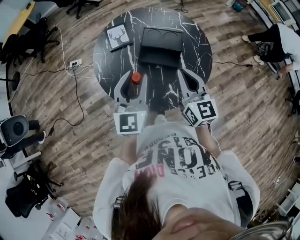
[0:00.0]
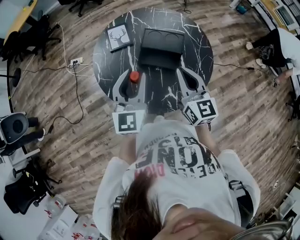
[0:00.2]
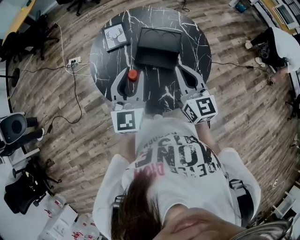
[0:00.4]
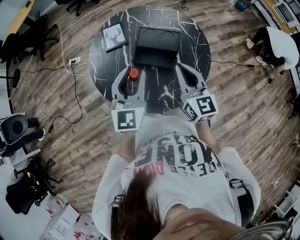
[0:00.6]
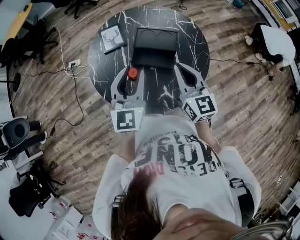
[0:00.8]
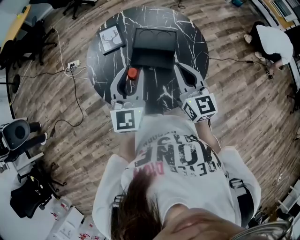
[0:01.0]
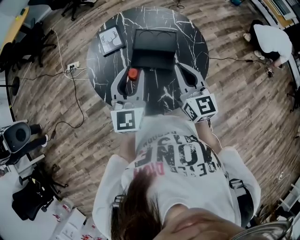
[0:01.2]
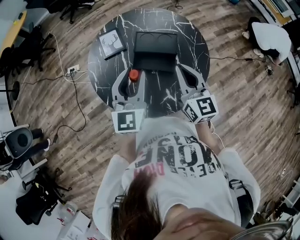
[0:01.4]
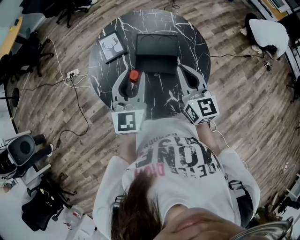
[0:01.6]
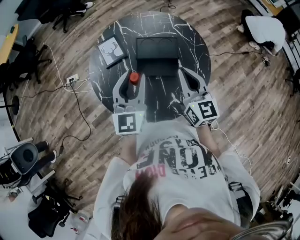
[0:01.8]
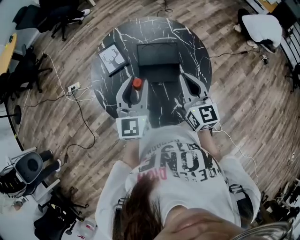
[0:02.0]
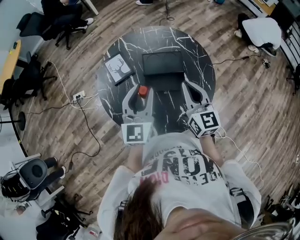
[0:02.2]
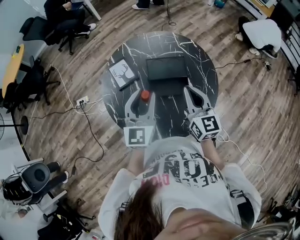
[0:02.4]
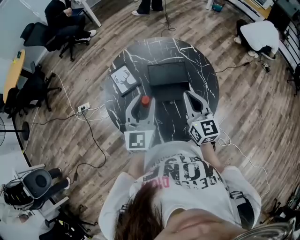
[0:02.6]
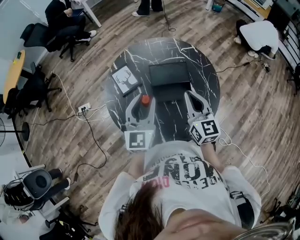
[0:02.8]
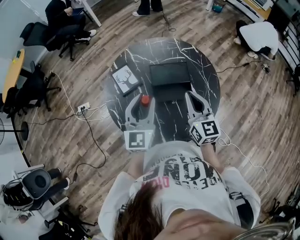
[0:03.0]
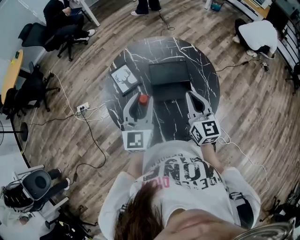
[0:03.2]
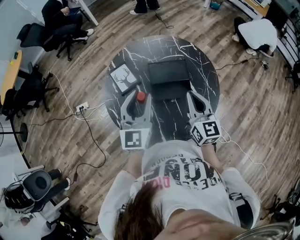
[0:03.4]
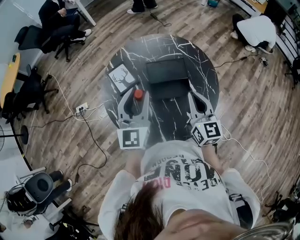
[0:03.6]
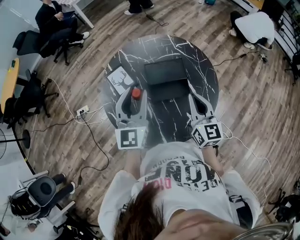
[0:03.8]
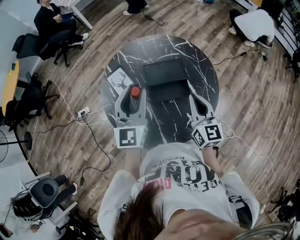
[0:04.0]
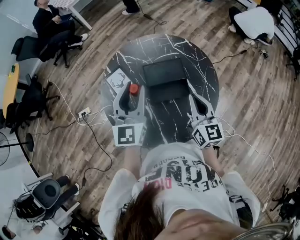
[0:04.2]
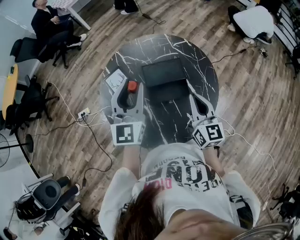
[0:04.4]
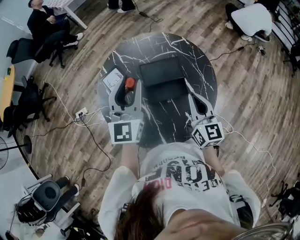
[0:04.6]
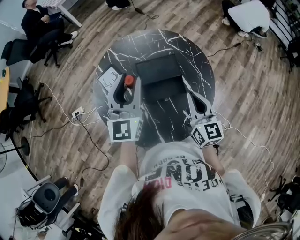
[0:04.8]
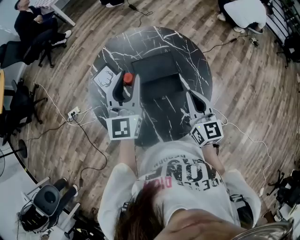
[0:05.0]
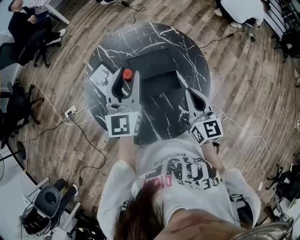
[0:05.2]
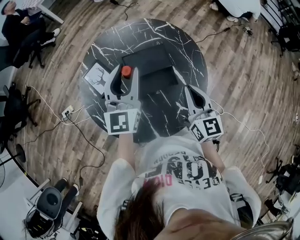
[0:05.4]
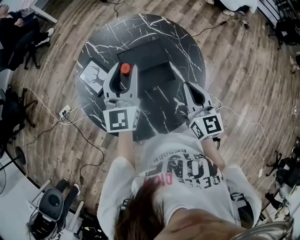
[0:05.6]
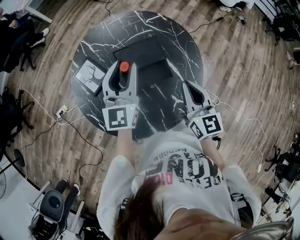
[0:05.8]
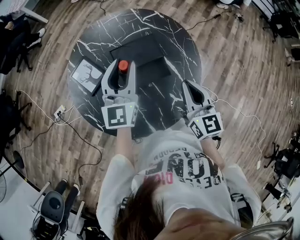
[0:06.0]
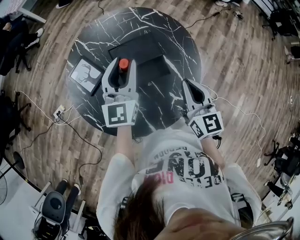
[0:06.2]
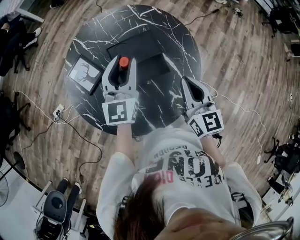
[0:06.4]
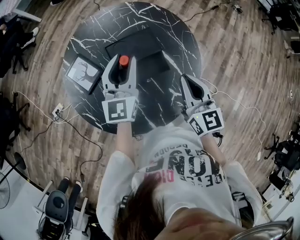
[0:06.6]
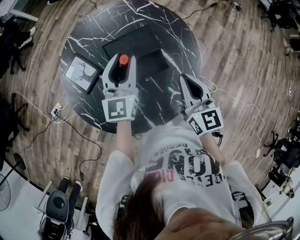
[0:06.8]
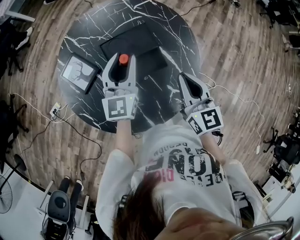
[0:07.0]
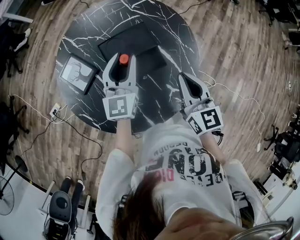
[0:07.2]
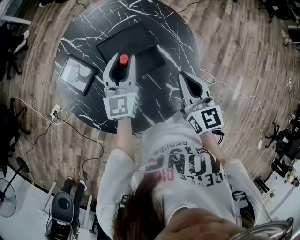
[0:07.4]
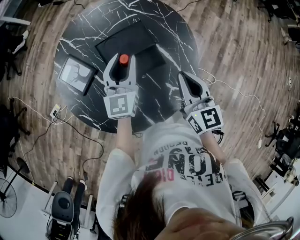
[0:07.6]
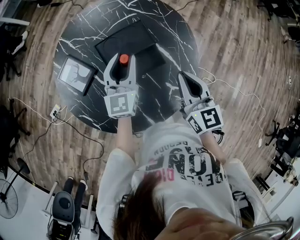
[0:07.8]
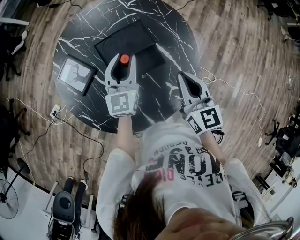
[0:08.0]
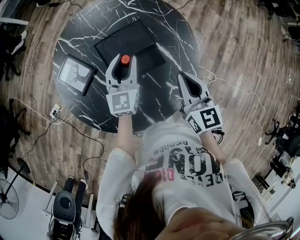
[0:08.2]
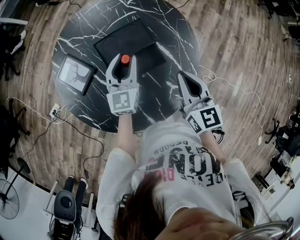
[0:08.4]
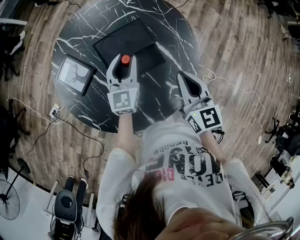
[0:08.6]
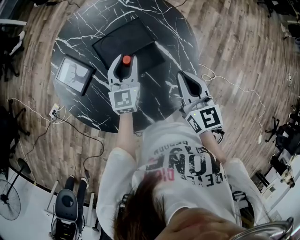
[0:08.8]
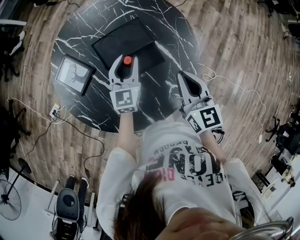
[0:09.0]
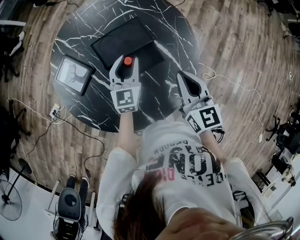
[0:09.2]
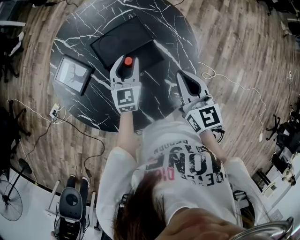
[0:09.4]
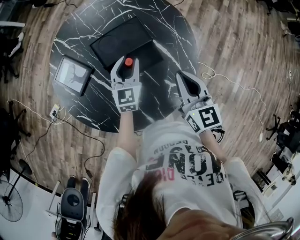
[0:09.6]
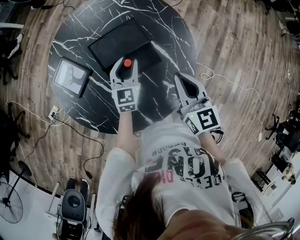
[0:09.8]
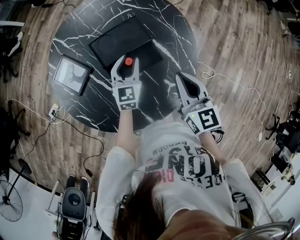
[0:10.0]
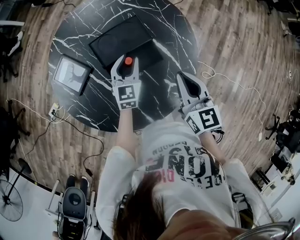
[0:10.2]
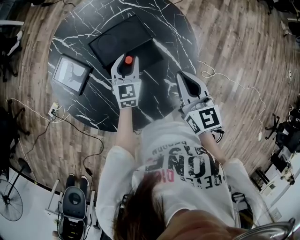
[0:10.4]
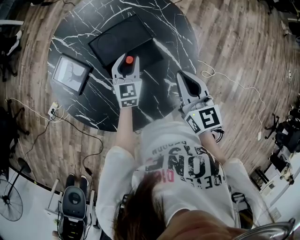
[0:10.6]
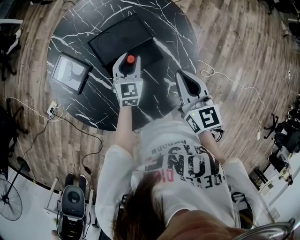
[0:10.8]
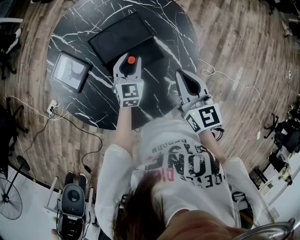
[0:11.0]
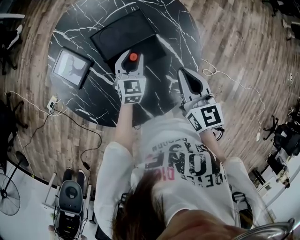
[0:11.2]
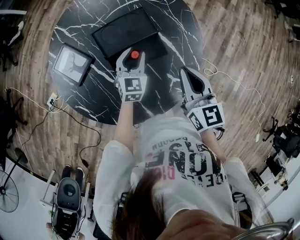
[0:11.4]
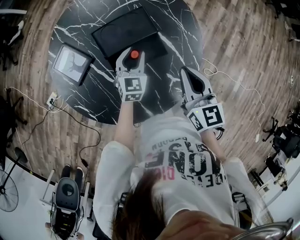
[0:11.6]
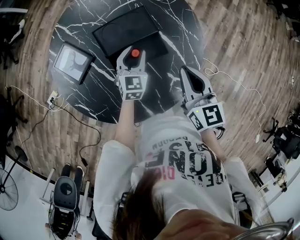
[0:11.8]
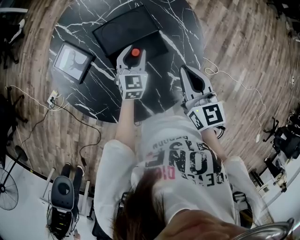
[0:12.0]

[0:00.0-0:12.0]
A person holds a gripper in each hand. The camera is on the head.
0:00.0 to 0:01.6: Both grippers travel together forward, roughly 5 cm.
0:01.6 to 0:03.0: The left gripper heads to the left, covering about 5 cm. Meanwhile the right gripper ends up roughly 5 cm from where it was.
0:03.0 to 0:04.4: The left gripper goes approximately 10 cm forward and upward.
0:04.4 to 0:06.0: The left gripper shifts approximately 10 cm downward, forward and to the right.
0:06.0 to 0:07.6: The left gripper moves downward, some 10 cm.
0:07.6 to 0:09.0: The left gripper travels downward by approximately 5 cm.
0:09.0 to 0:10.4: The left gripper shifts roughly 5 cm downward.
0:10.4 to 0:12.0: The grippers move only a little.

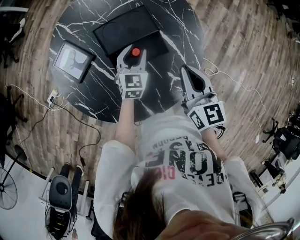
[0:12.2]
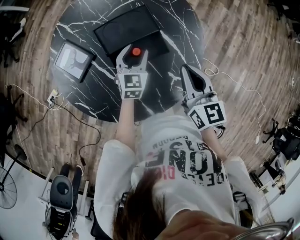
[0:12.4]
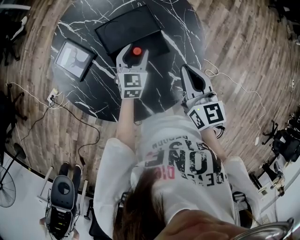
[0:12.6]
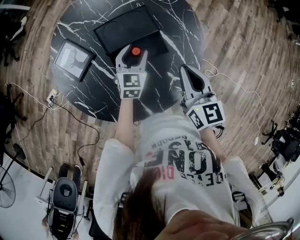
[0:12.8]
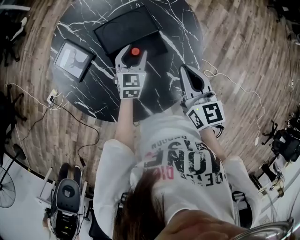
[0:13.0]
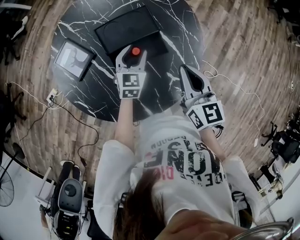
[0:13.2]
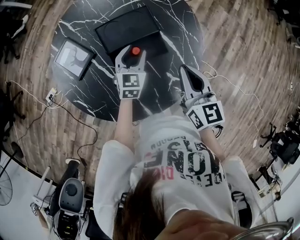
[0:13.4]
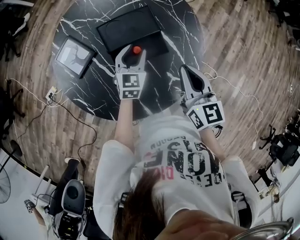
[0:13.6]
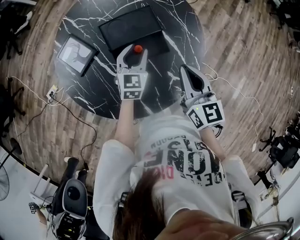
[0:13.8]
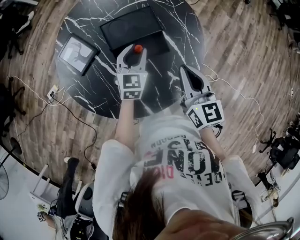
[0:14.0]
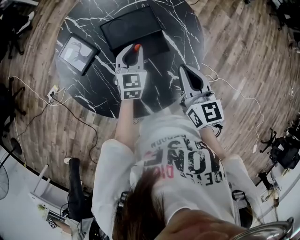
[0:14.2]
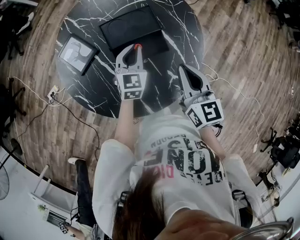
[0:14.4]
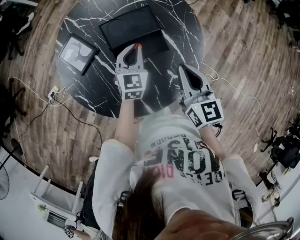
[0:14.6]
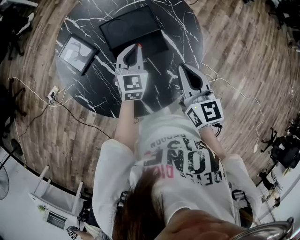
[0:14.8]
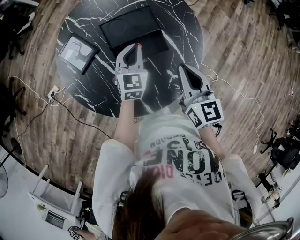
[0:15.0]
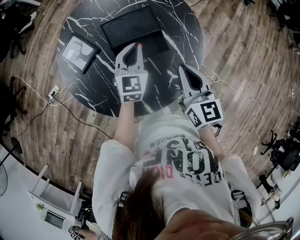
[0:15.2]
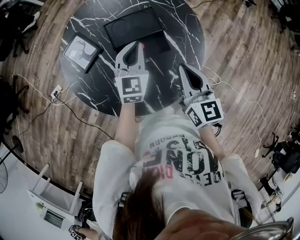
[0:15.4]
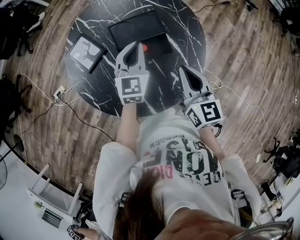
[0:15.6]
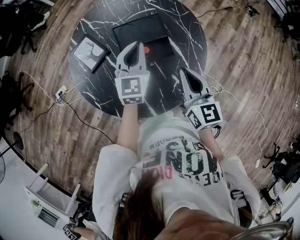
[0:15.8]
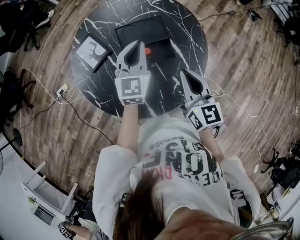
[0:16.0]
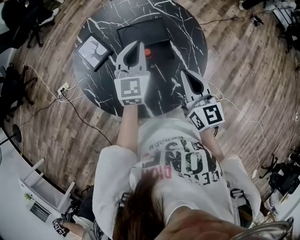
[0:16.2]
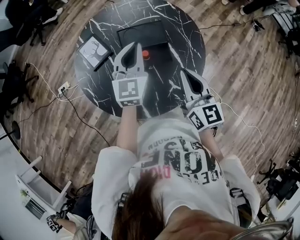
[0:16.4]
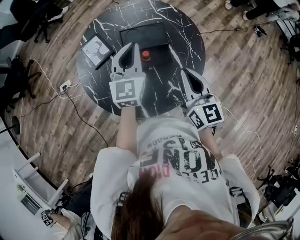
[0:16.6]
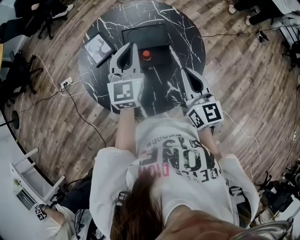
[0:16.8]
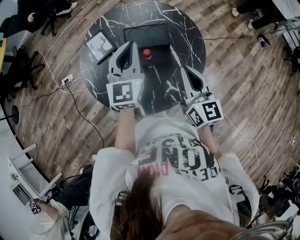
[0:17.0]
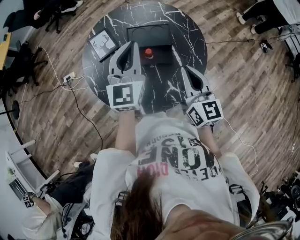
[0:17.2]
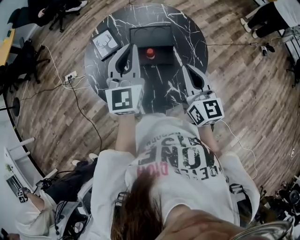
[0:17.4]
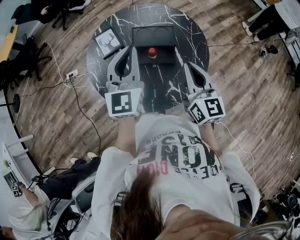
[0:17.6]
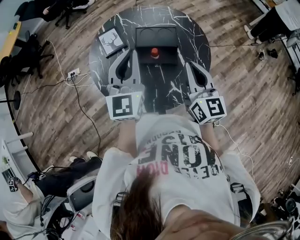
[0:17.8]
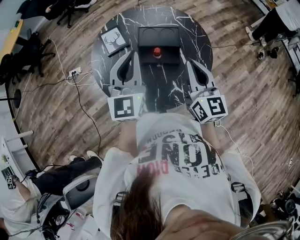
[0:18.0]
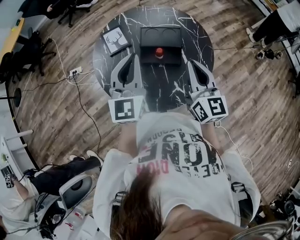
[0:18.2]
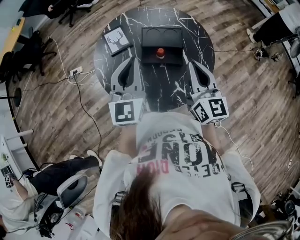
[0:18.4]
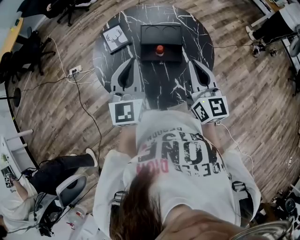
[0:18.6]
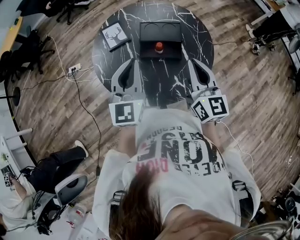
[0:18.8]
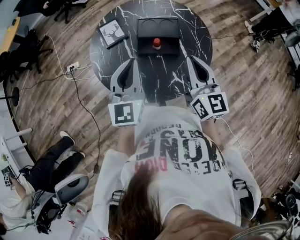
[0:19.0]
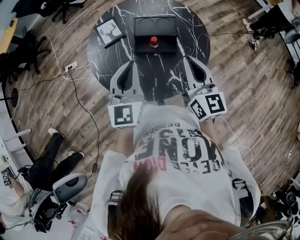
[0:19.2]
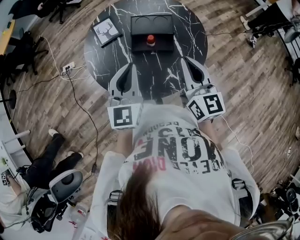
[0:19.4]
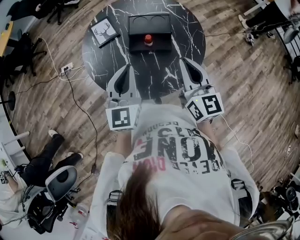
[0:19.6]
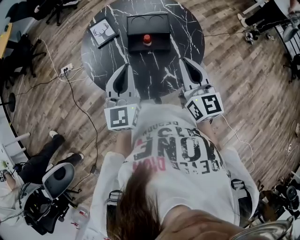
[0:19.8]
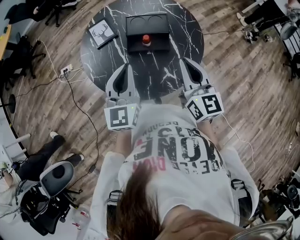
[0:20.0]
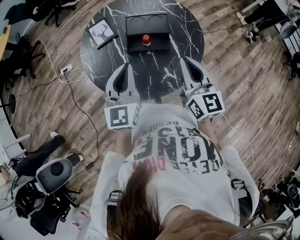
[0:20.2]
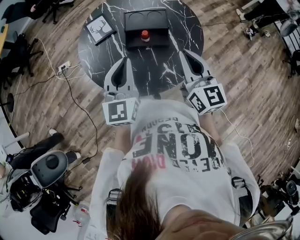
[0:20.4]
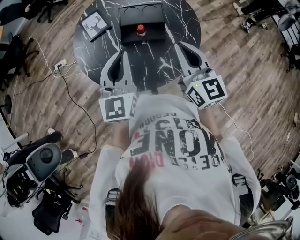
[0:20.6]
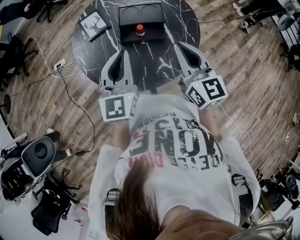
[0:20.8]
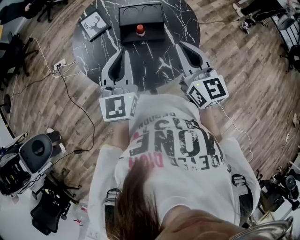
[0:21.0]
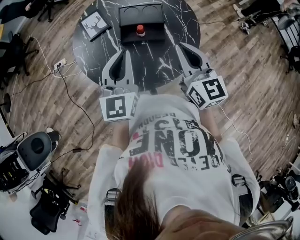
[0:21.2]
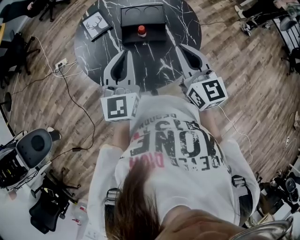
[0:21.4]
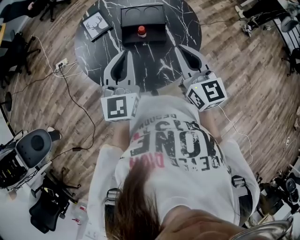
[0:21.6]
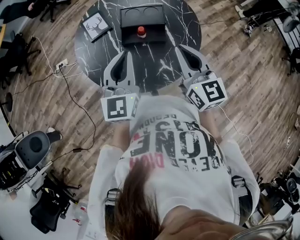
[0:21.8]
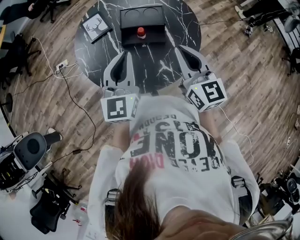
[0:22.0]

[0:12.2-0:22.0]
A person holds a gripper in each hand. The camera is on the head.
0:12.2 to 0:13.6: There are only small adjustments of the grippers.
0:13.6 to 0:15.0: The left gripper closes its fingers.
0:15.0 to 0:16.4: The left gripper is displaced upward by approximately 15 cm.
0:16.4 to 0:17.8: The left gripper heads backward and upward, covering some 15 cm.
0:17.8 to 0:19.2: The left gripper goes roughly 10 cm backward and downward.
0:19.2 to 0:22.0: The grippers stay close to where they were, moving slightly.

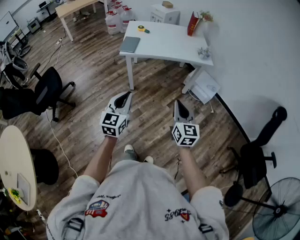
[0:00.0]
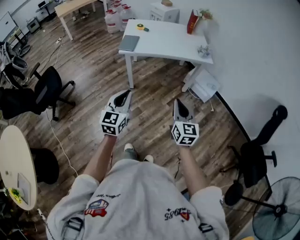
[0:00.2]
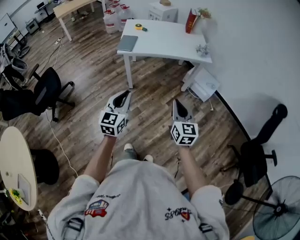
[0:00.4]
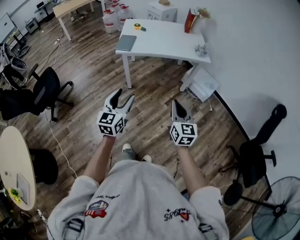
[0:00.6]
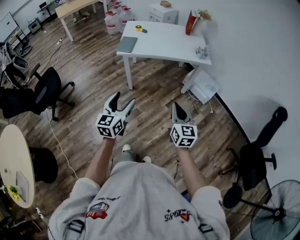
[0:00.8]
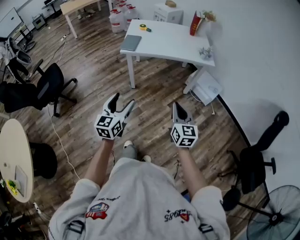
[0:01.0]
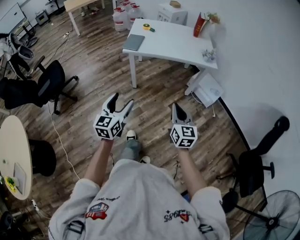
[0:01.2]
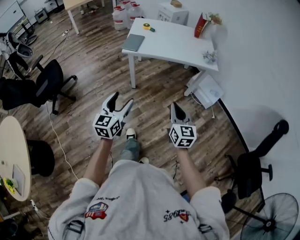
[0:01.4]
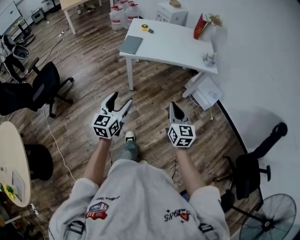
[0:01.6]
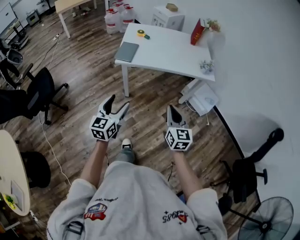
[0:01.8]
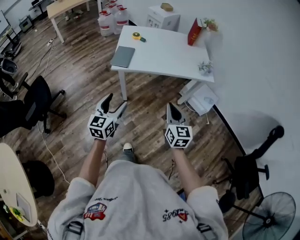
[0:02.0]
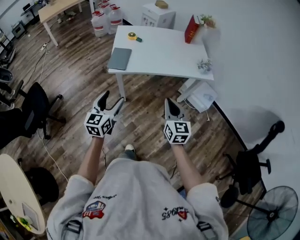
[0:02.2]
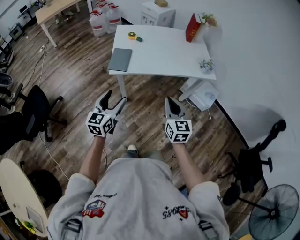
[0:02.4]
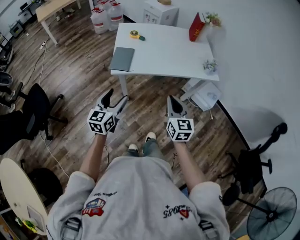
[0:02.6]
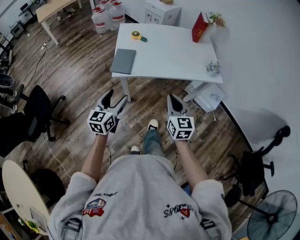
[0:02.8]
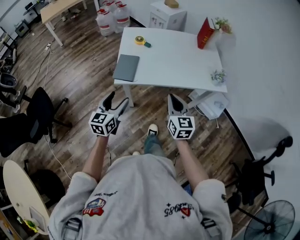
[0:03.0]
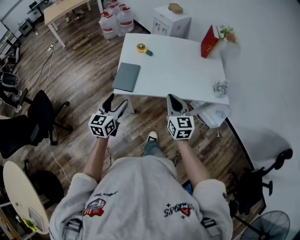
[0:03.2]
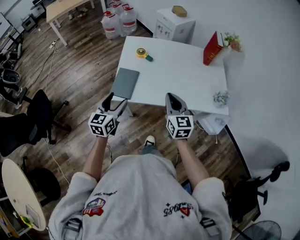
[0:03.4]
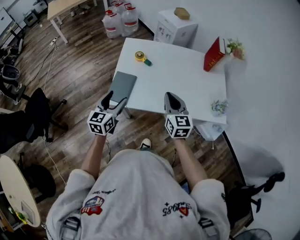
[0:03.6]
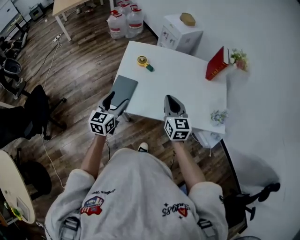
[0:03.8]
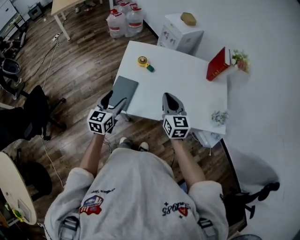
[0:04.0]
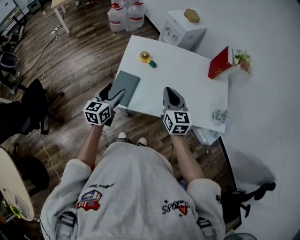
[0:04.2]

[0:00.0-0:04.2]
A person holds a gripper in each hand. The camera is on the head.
0:00.0 to 0:01.4: The left gripper opens its fingers; the right gripper changes place by some 5 cm.
0:01.4 to 0:02.8: The two grippers go roughly 35 cm forward.
0:02.8 to 0:04.2: The grippers both shift forward by about 35 cm.
